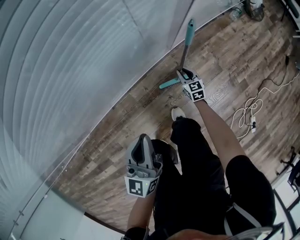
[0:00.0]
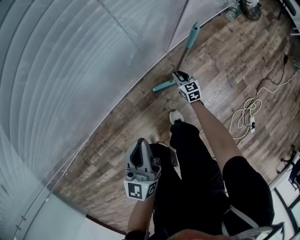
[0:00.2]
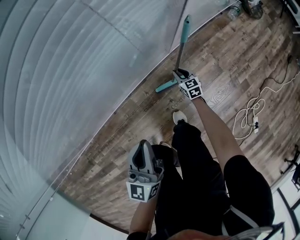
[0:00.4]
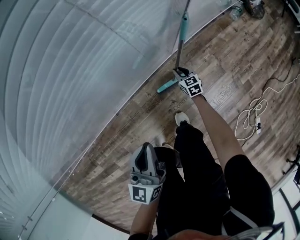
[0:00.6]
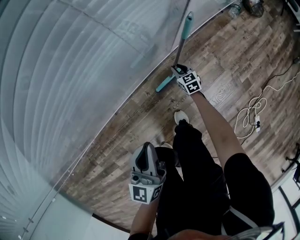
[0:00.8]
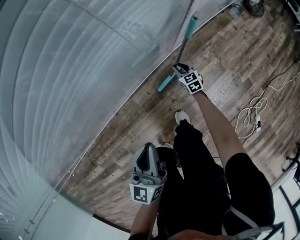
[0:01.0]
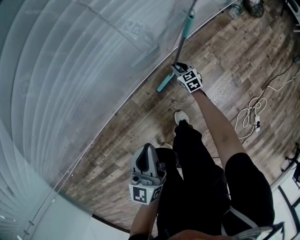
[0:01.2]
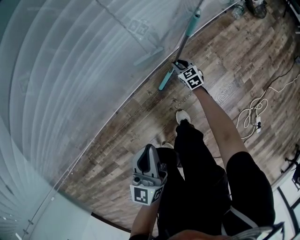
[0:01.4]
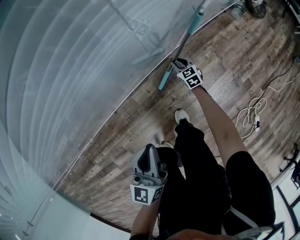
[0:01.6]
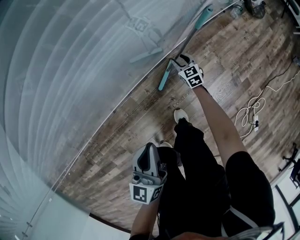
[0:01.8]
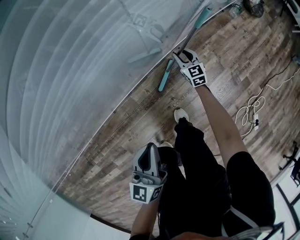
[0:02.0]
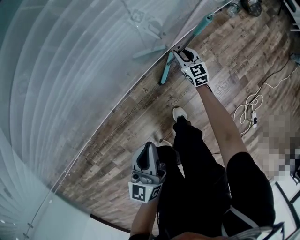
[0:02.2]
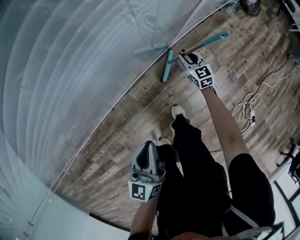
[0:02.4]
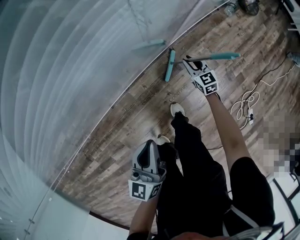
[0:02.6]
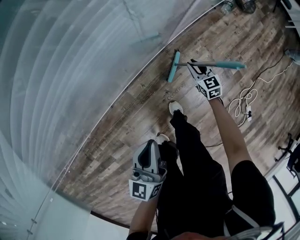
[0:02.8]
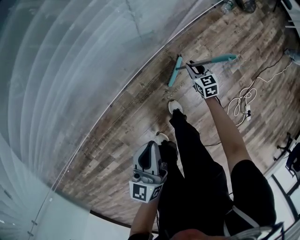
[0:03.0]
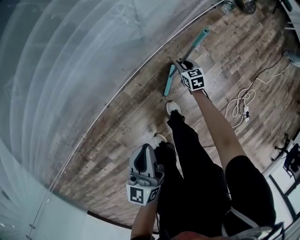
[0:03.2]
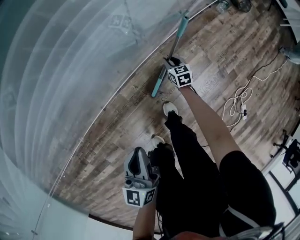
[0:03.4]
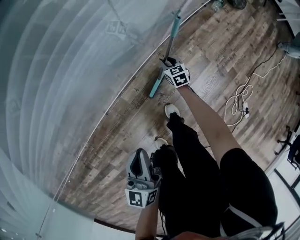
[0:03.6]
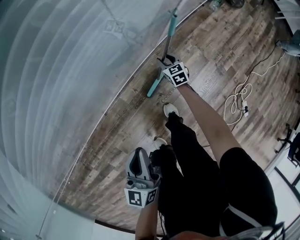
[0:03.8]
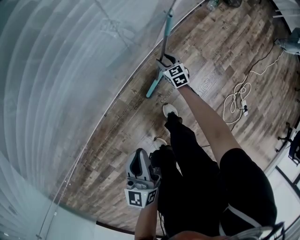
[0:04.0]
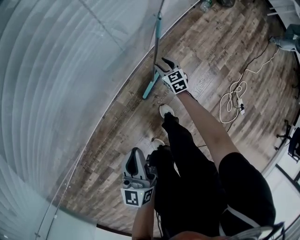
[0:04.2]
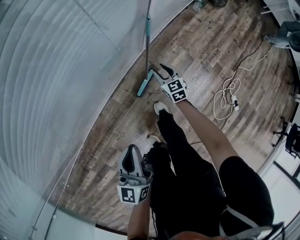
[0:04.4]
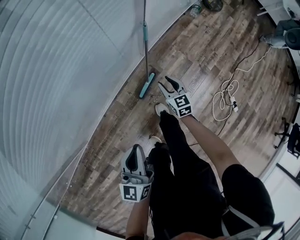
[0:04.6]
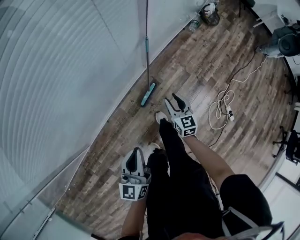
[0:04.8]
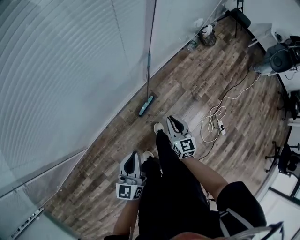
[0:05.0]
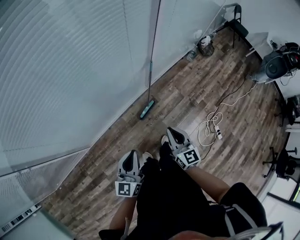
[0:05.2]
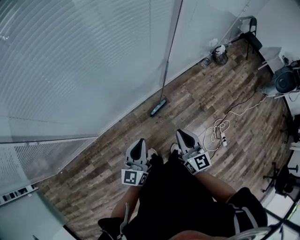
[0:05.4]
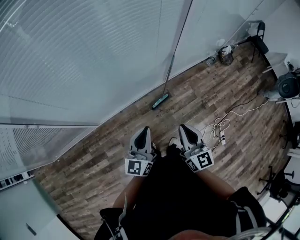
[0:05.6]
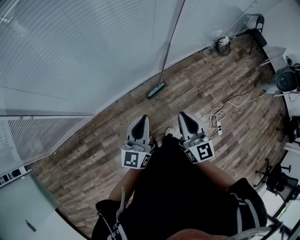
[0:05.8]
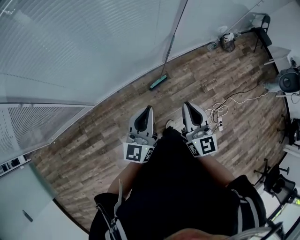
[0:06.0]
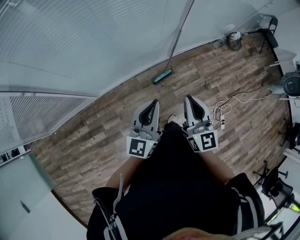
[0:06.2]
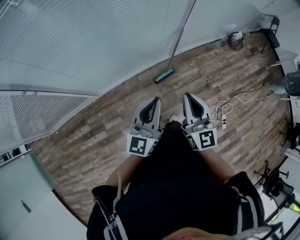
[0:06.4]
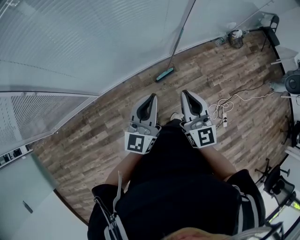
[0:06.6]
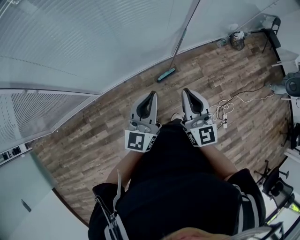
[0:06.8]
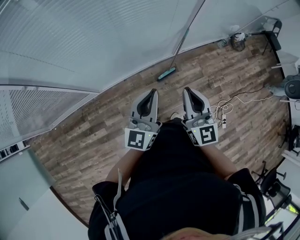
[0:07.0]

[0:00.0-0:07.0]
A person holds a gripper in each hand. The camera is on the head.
0:00.0 to 0:01.4: The right gripper is displaced forward by some 10 cm.
0:01.4 to 0:02.8: The left gripper ends up about 5 cm from where it was, while the right gripper moves upward, to the right and backward, approximately 20 cm.
0:04.2 to 0:05.6: The left gripper heads upward and backward, covering some 40 cm. The right gripper travels upward and backward by about 80 cm, angles its fingers upward, by approximately 30 degrees, and closes up.
0:05.6 to 0:07.0: The right gripper ends up approximately 5 cm from where it was, while the left gripper goes about 5 cm upward.

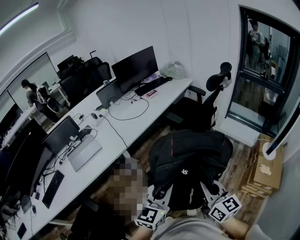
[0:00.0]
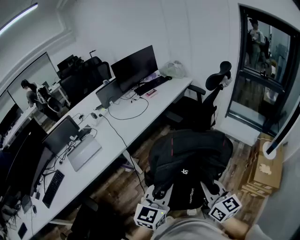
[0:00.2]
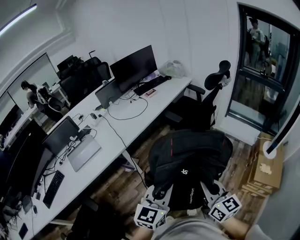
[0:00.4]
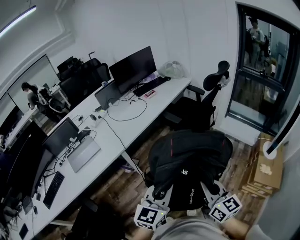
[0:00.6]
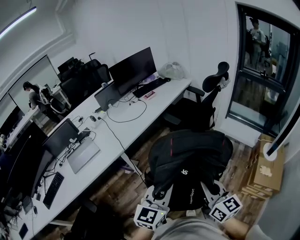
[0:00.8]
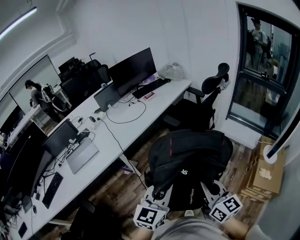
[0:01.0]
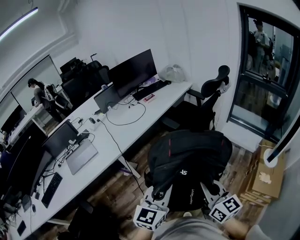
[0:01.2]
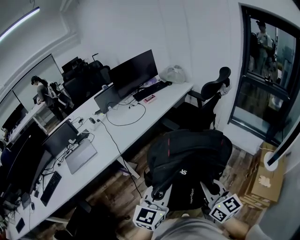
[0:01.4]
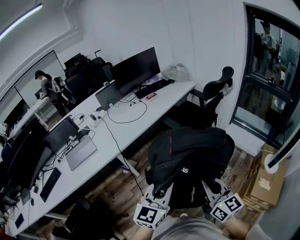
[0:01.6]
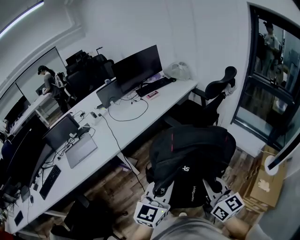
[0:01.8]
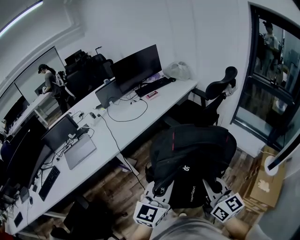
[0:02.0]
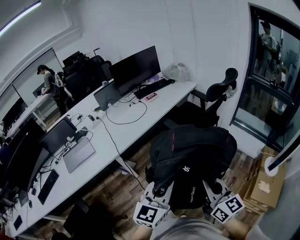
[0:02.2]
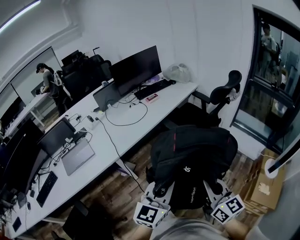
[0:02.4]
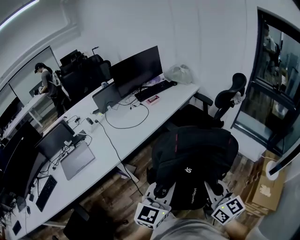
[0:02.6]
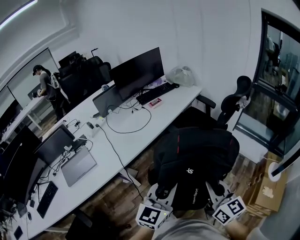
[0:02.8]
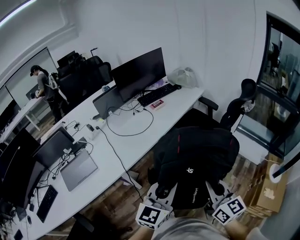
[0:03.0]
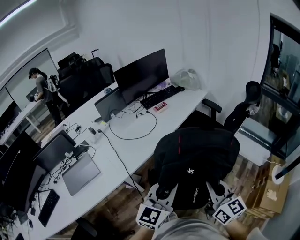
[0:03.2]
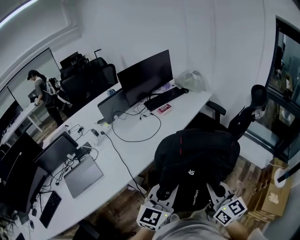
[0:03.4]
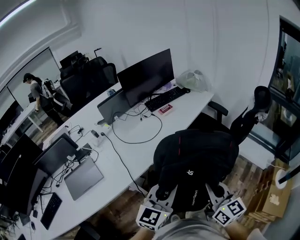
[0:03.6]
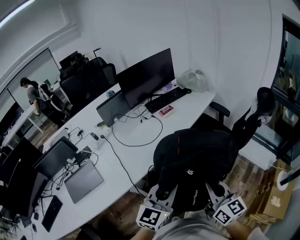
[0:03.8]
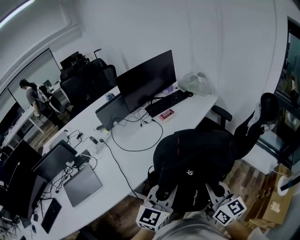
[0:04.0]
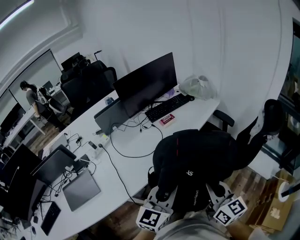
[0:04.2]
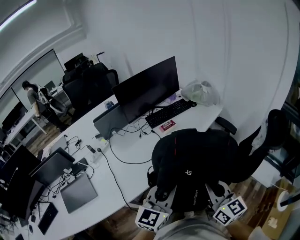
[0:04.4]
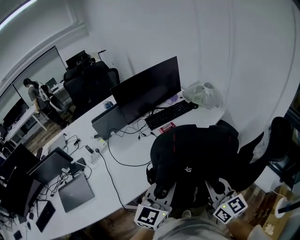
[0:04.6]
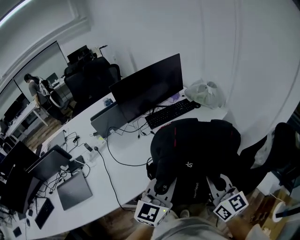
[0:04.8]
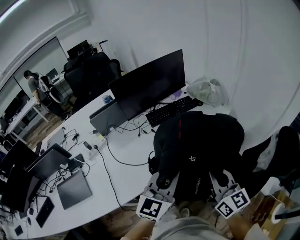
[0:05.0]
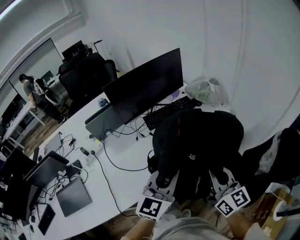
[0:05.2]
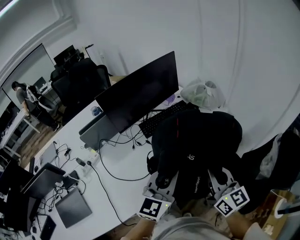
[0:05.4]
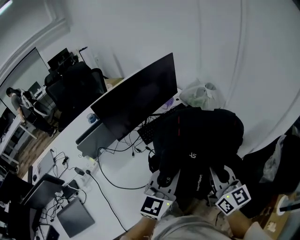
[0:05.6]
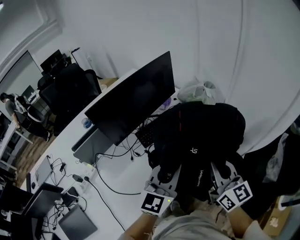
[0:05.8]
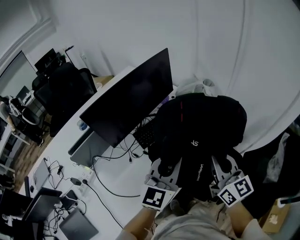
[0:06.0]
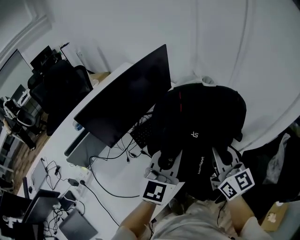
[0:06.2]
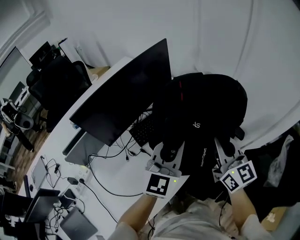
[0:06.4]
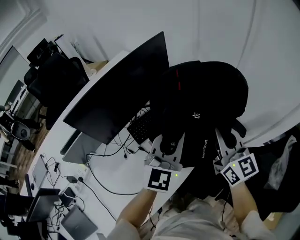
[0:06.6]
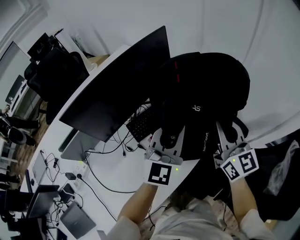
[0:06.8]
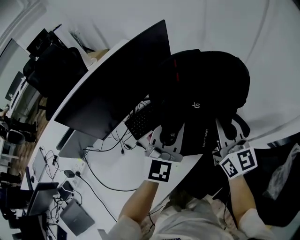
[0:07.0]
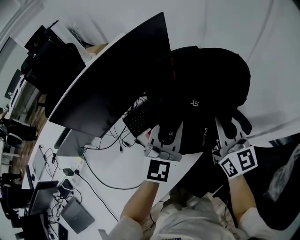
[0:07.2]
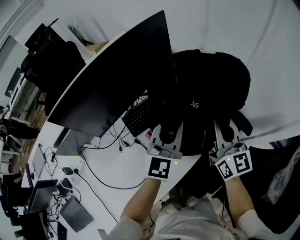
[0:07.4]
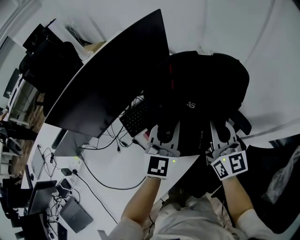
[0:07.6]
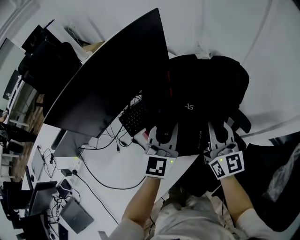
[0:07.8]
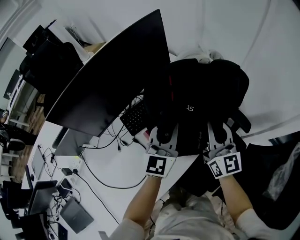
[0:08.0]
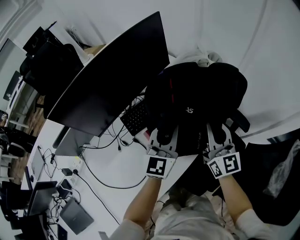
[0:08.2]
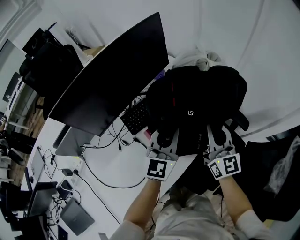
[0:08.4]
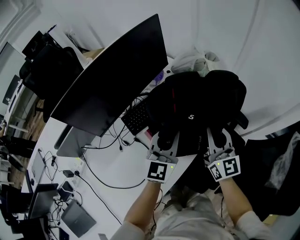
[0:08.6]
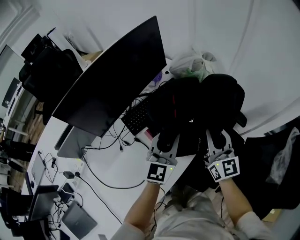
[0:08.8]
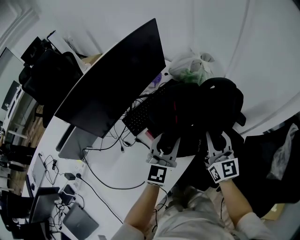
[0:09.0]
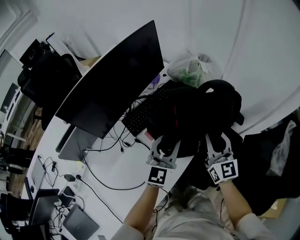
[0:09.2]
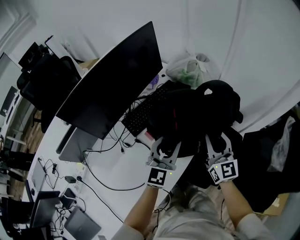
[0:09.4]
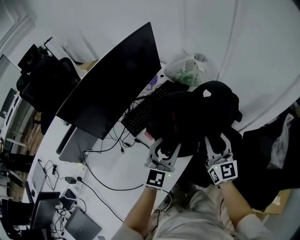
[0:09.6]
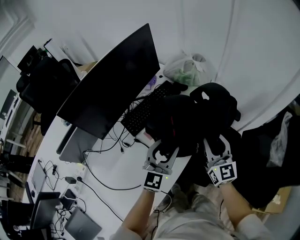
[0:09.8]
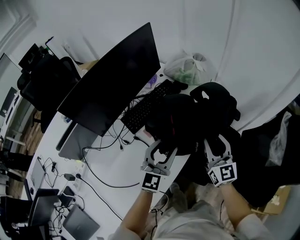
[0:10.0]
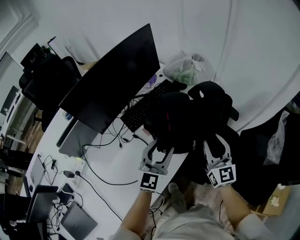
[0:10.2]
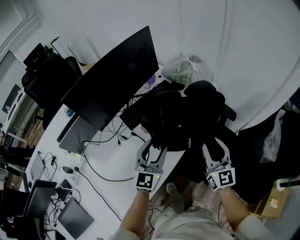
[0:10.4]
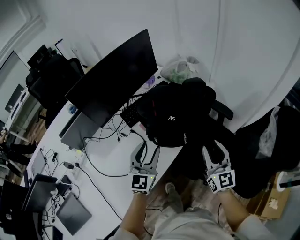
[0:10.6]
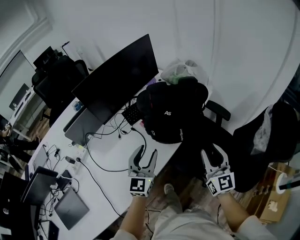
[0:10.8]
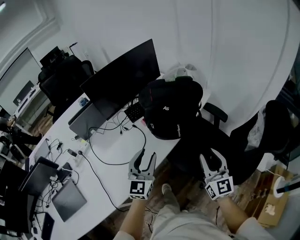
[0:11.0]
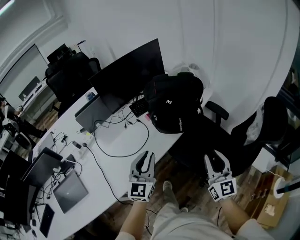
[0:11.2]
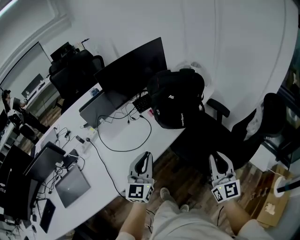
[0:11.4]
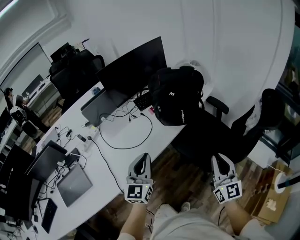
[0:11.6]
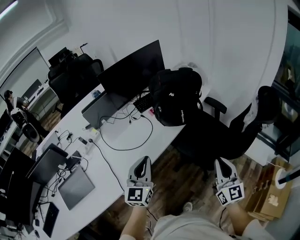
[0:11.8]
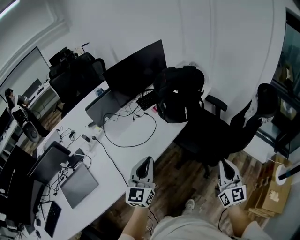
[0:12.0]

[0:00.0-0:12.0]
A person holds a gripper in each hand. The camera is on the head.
0:00.0 to 0:01.6: Both grippers move to the right and forward, approximately 15 cm.
0:01.6 to 0:03.0: Both grippers travel together forward and to the left, roughly 20 cm.
0:03.0 to 0:04.4: The grippers both shift forward by roughly 25 cm.
0:04.4 to 0:06.0: Both grippers travel together forward, roughly 35 cm.
0:06.0 to 0:07.6: The left gripper goes roughly 20 cm forward and downward. The right gripper goes roughly 20 cm forward.
0:07.6 to 0:09.0: The two grippers go roughly 10 cm backward.
0:09.0 to 0:10.4: The left gripper travels backward by some 10 cm, and opens. Meanwhile the right gripper shifts some 15 cm backward and to the right.
0:10.4 to 0:12.0: Both grippers travel together backward, some 40 cm. The left gripper closes its fingers, while the right gripper closes its fingers.

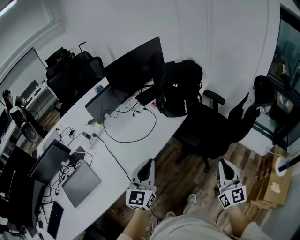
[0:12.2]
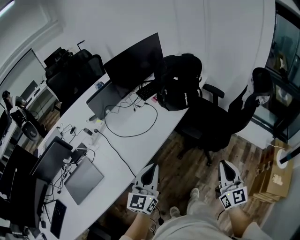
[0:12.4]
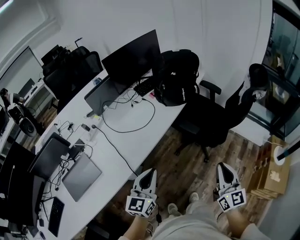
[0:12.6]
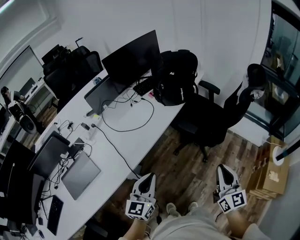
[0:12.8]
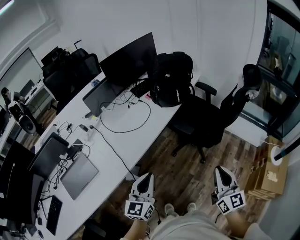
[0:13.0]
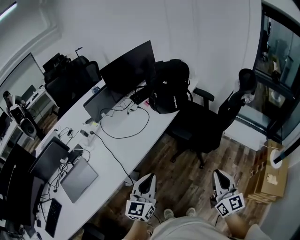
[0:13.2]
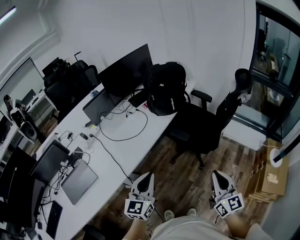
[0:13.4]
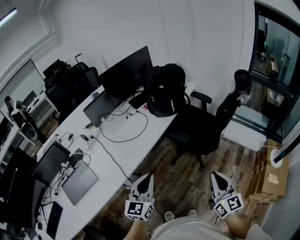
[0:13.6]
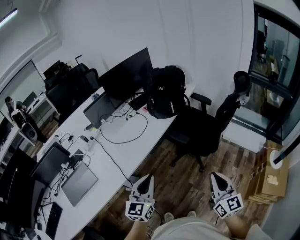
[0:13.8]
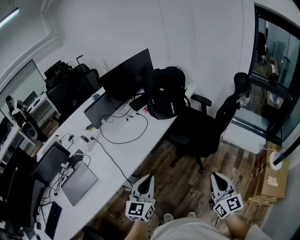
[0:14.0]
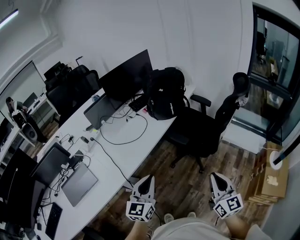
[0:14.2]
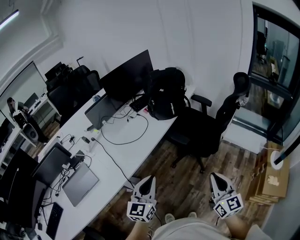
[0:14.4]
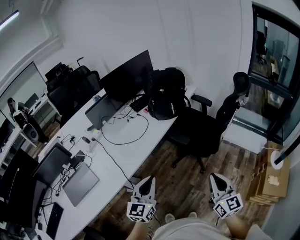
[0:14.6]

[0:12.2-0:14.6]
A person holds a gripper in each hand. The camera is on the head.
0:12.2 to 0:13.4: The two grippers go some 15 cm backward.
0:13.4 to 0:14.6: The grippers make only small movements.

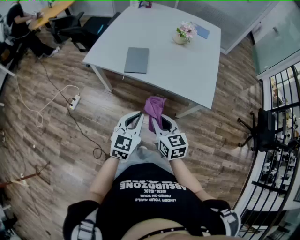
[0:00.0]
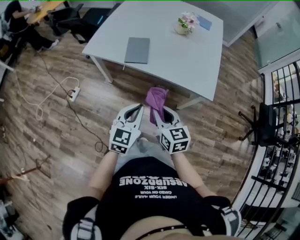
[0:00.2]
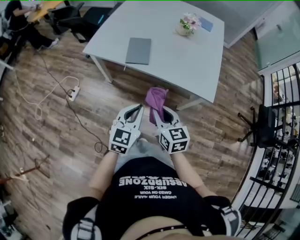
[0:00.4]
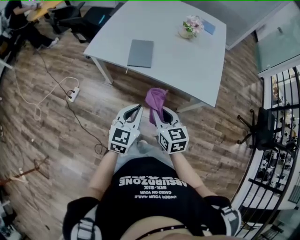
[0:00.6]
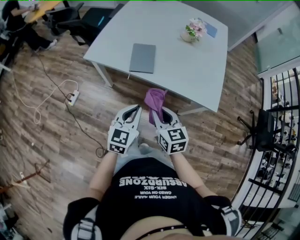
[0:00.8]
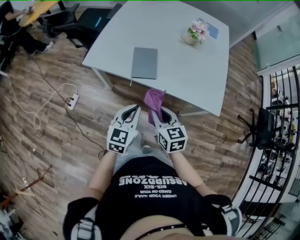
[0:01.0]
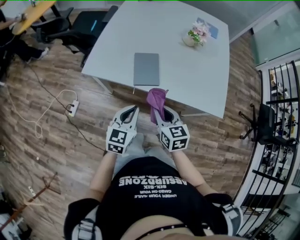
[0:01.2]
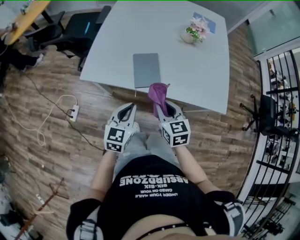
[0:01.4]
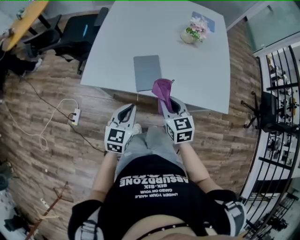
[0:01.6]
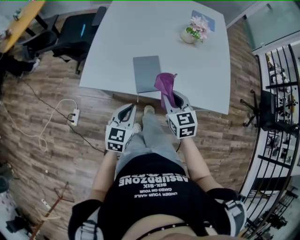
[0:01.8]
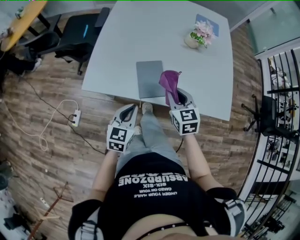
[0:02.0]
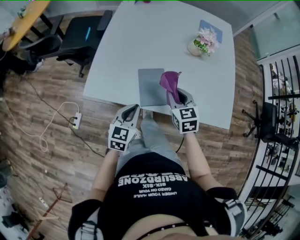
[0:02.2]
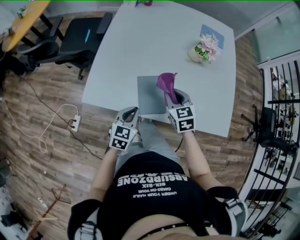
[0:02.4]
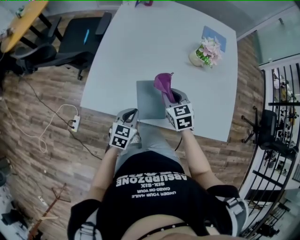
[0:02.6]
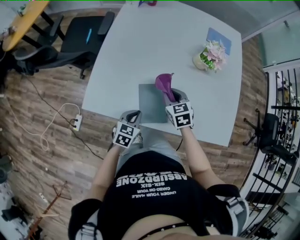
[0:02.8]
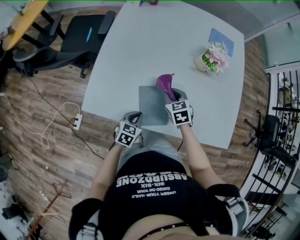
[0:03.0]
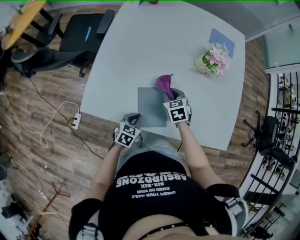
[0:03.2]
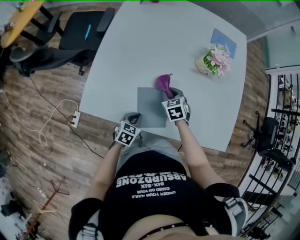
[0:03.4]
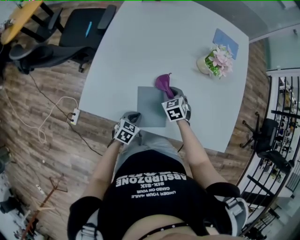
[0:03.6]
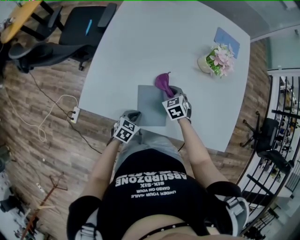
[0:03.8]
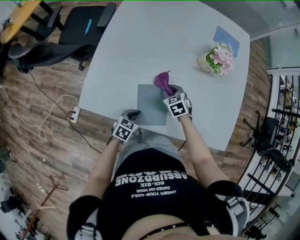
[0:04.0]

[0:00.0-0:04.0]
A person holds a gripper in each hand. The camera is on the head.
0:00.0 to 0:01.4: Both grippers move forward and to the left, some 25 cm.
0:01.4 to 0:02.6: The right gripper heads forward, covering about 25 cm; the left gripper moves forward and downward, about 20 cm.
0:02.6 to 0:04.0: The left gripper moves downward, about 10 cm. The right gripper travels downward and forward by about 15 cm.
